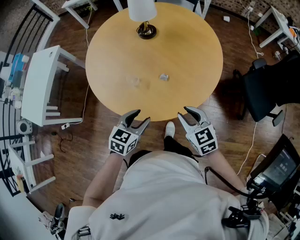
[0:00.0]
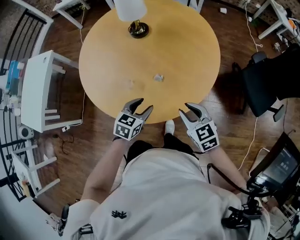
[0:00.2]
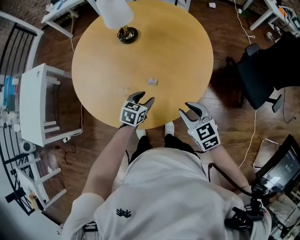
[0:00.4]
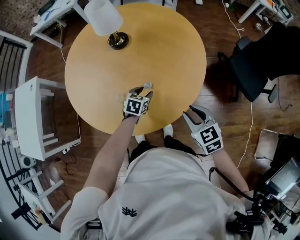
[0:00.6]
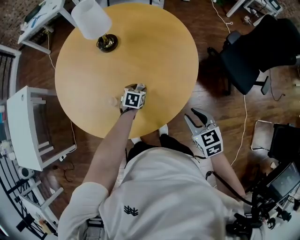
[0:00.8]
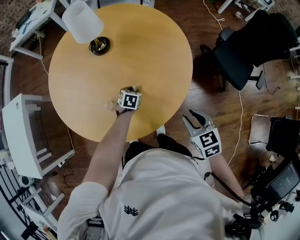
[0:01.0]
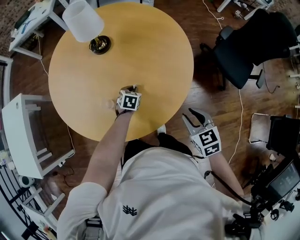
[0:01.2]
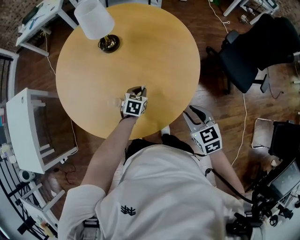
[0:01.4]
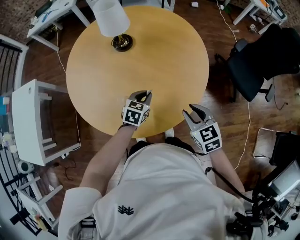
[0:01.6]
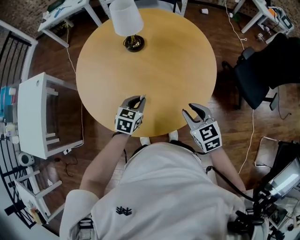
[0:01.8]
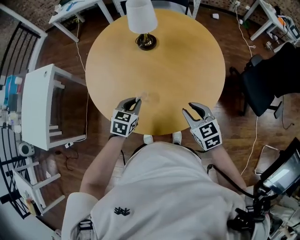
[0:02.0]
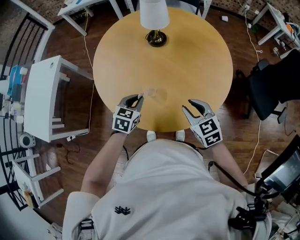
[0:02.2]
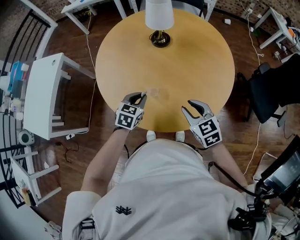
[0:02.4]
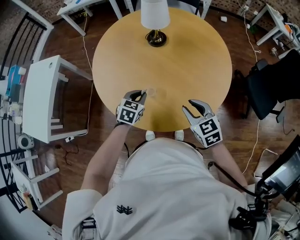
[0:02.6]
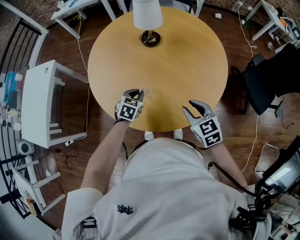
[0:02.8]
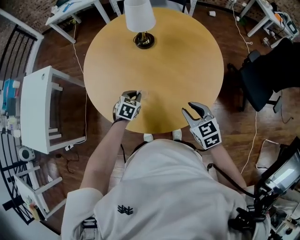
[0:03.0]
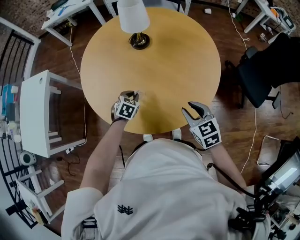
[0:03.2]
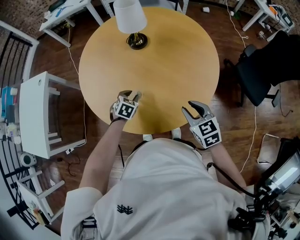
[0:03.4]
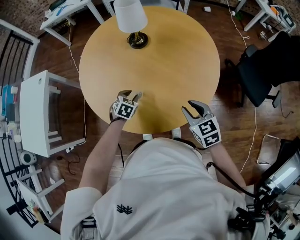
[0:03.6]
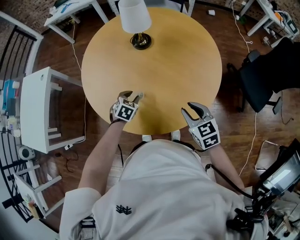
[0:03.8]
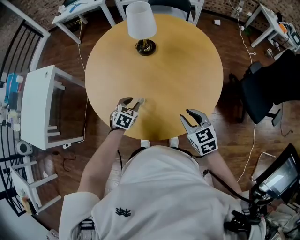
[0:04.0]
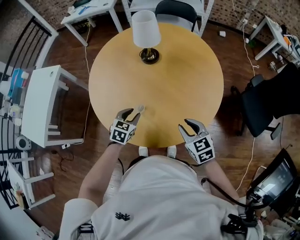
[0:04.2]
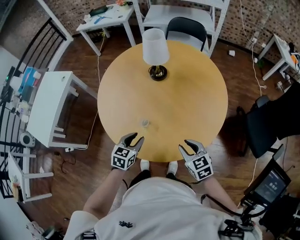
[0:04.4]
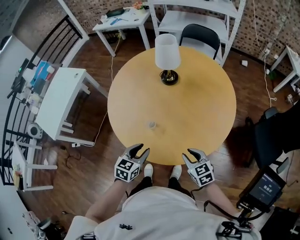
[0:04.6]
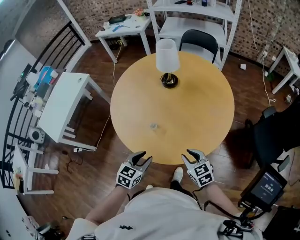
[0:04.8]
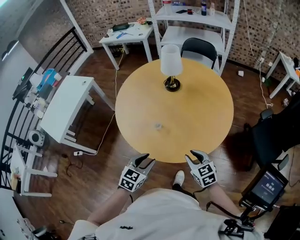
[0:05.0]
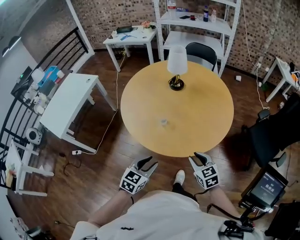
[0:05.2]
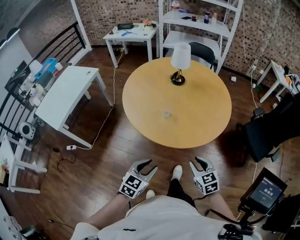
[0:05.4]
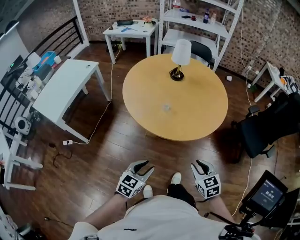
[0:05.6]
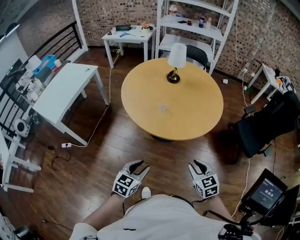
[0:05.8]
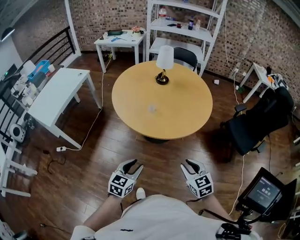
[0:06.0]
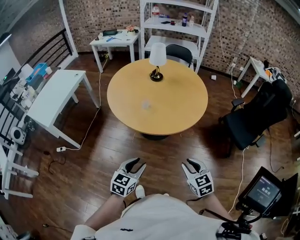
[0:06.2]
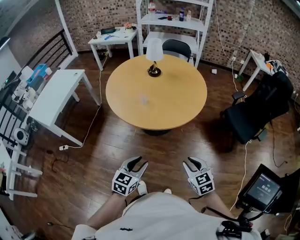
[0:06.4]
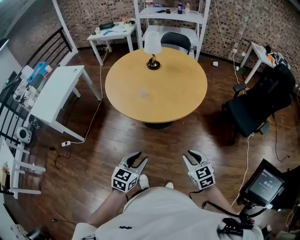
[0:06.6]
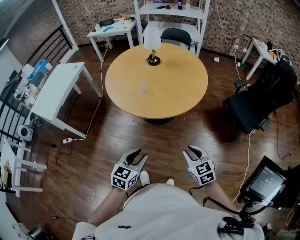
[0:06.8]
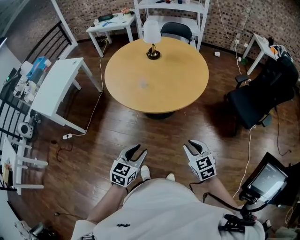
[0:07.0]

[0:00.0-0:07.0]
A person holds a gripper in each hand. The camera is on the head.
0:00.0 to 0:01.4: The right gripper heads forward and to the right, covering roughly 10 cm, and turns by approximately 20 degrees. The left gripper travels forward and downward by about 25 cm, and closes its fingers.
0:01.4 to 0:02.8: Both grippers move to the left, some 15 cm.
0:02.8 to 0:04.2: The left gripper opens up.
0:04.2 to 0:05.6: Both grippers travel together backward, approximately 35 cm.
0:05.6 to 0:07.0: Both grippers travel together to the right and backward, approximately 15 cm.

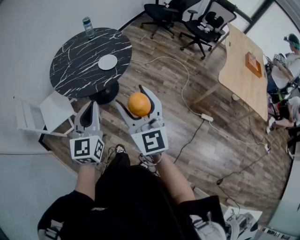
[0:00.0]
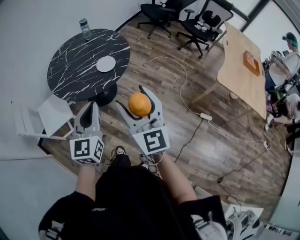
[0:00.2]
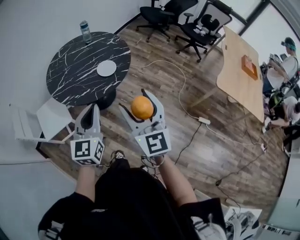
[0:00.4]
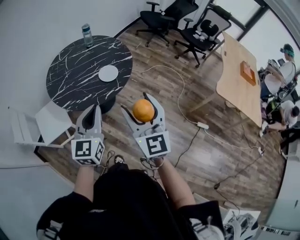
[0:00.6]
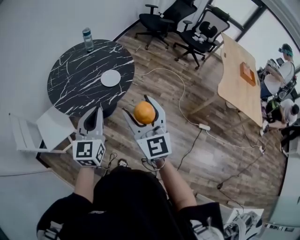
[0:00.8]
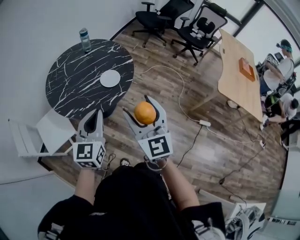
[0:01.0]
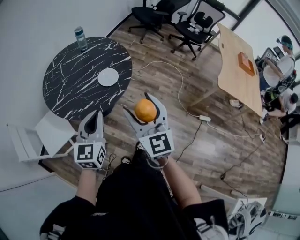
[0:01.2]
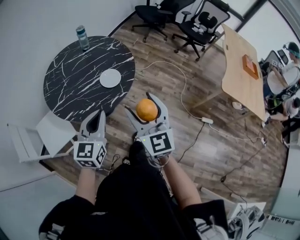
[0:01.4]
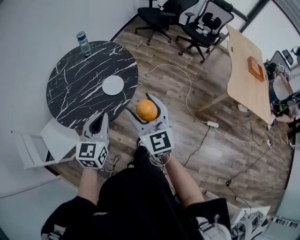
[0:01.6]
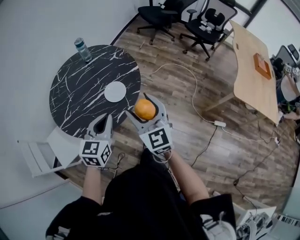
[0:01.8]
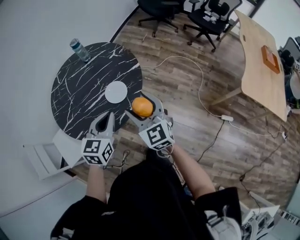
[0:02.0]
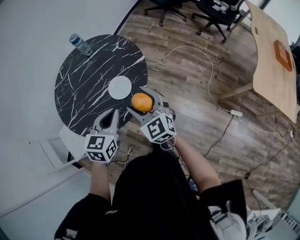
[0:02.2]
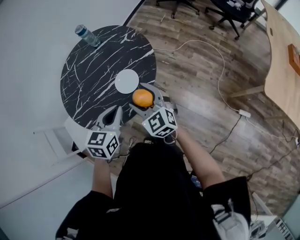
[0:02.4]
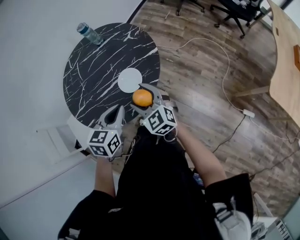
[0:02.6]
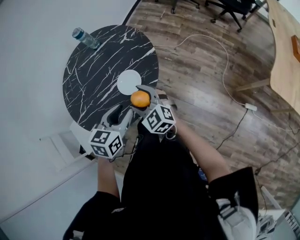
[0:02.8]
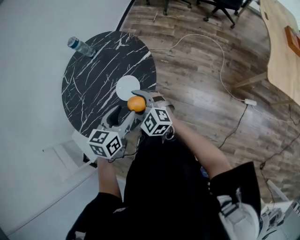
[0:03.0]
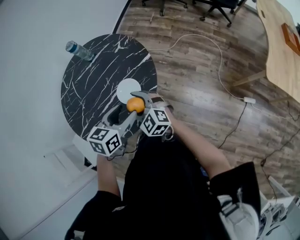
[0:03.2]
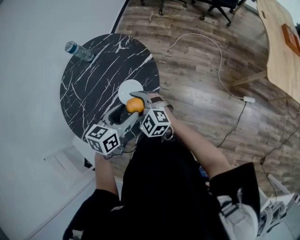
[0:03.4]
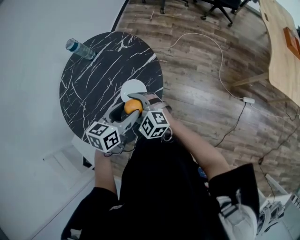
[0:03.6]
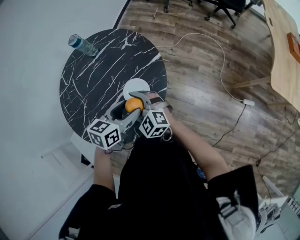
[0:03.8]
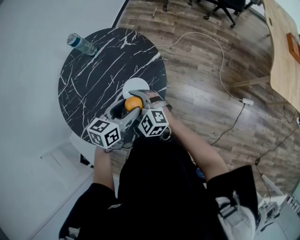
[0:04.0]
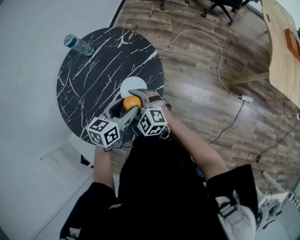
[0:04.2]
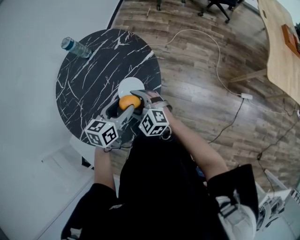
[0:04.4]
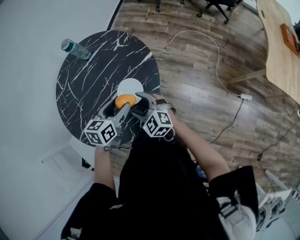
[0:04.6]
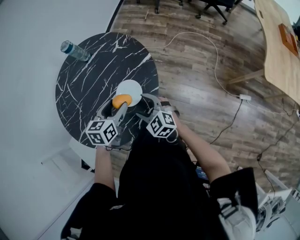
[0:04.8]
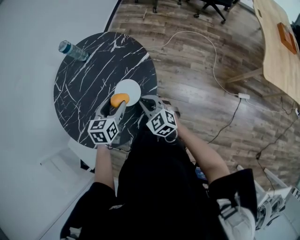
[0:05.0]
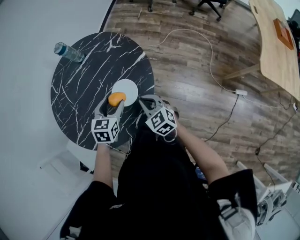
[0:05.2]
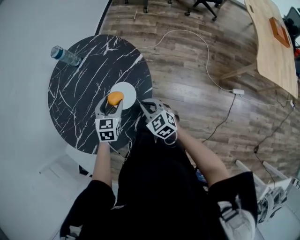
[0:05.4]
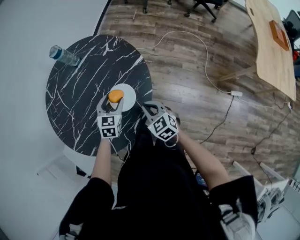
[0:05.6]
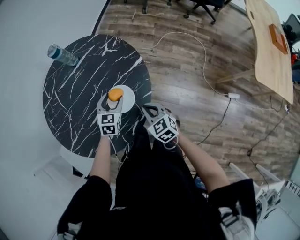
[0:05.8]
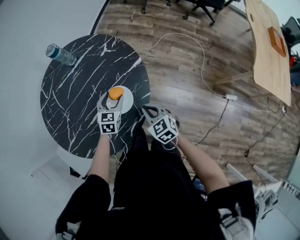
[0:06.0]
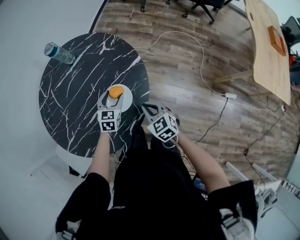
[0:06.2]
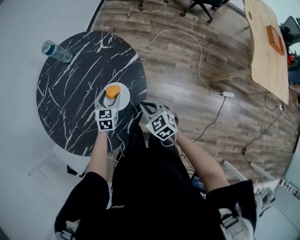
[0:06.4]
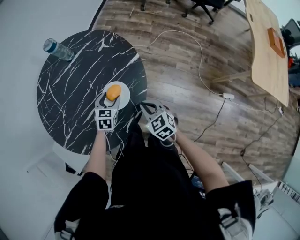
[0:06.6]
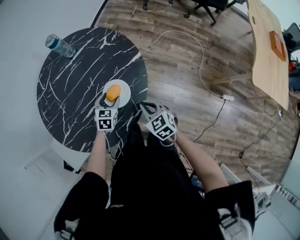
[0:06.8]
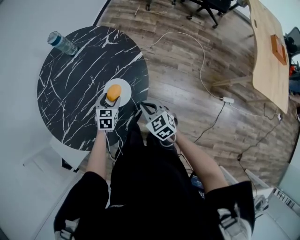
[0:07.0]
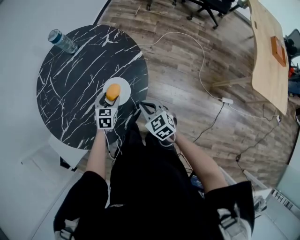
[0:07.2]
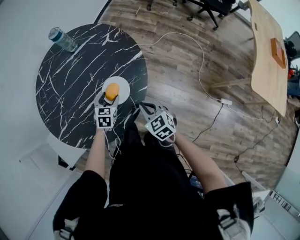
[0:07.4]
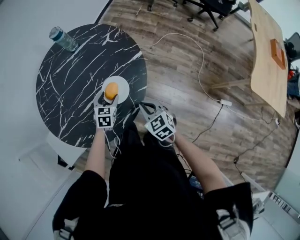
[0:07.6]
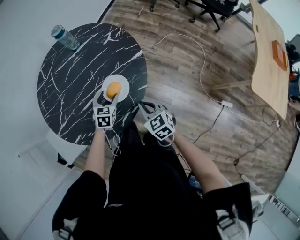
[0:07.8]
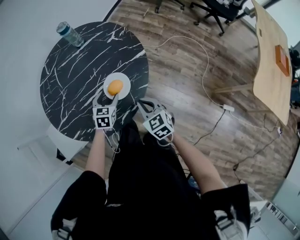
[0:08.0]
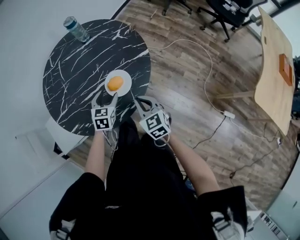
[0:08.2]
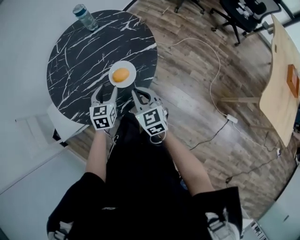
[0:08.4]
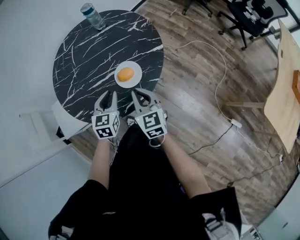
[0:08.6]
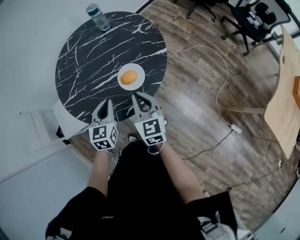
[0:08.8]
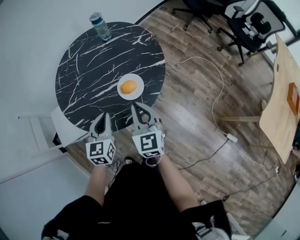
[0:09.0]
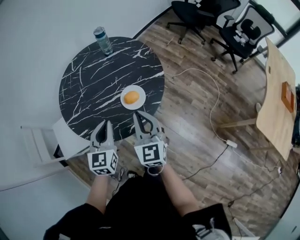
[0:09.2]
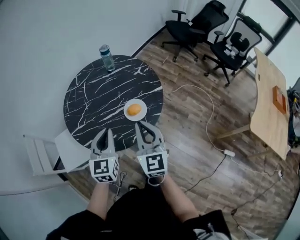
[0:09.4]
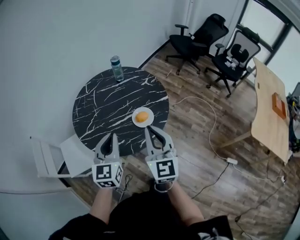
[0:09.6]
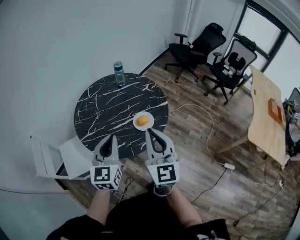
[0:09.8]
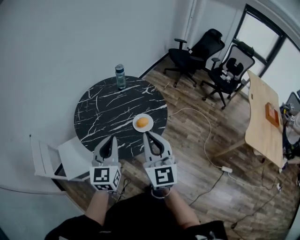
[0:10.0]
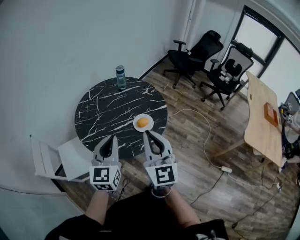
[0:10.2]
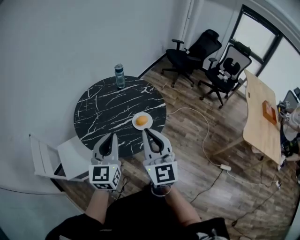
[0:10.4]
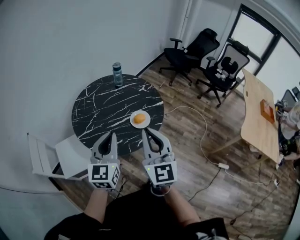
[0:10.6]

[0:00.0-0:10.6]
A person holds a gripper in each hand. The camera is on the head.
0:00.0 to 0:01.6: The two grippers go about 20 cm forward.
0:01.6 to 0:03.0: The right gripper goes roughly 25 cm downward and forward, and rotates about 30 degrees. The left gripper shifts approximately 20 cm forward, downward and to the right, changes its angle by about 30 degrees, and opens its fingers.
0:03.0 to 0:04.6: The right gripper travels to the left and back again, some 10 cm each way, while the left gripper shifts approximately 10 cm forward, to the left and downward.
0:04.6 to 0:06.0: The right gripper travels to the right by some 10 cm, rotates approximately 30 degrees, and closes; the left gripper heads downward and forward, covering roughly 15 cm, and changes its angle by about 20 degrees.
0:06.0 to 0:07.6: The left gripper moves roughly 5 cm.
0:07.6 to 0:09.0: The left gripper travels upward and backward by approximately 25 cm, changes its angle by roughly 30 degrees, and closes up; the right gripper shifts roughly 15 cm upward, and swivels some 20 degrees.
0:09.0 to 0:10.6: The two grippers go roughly 25 cm upward and backward. The left gripper swivels about 20 degrees; the right gripper rotates approximately 20 degrees.

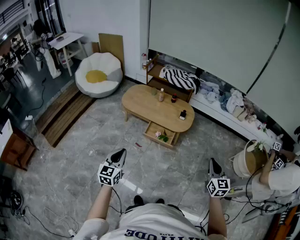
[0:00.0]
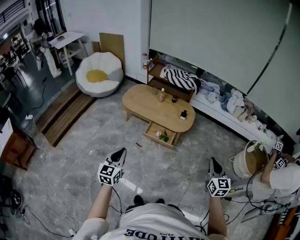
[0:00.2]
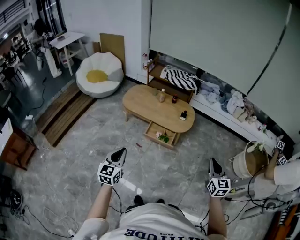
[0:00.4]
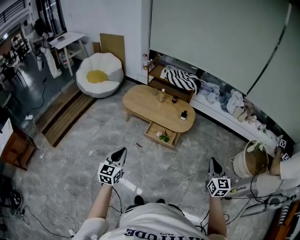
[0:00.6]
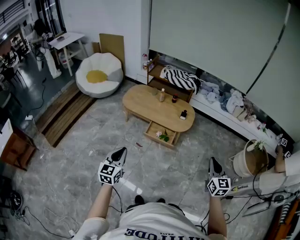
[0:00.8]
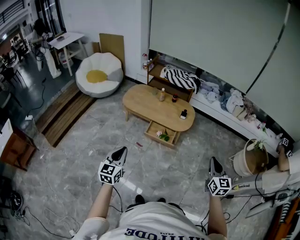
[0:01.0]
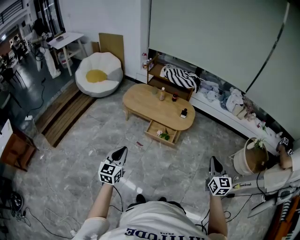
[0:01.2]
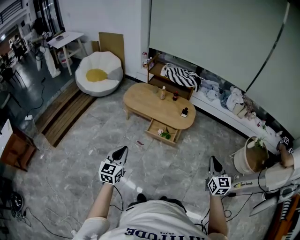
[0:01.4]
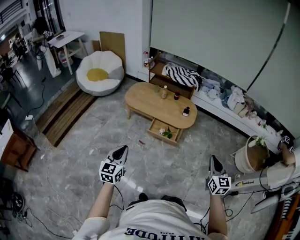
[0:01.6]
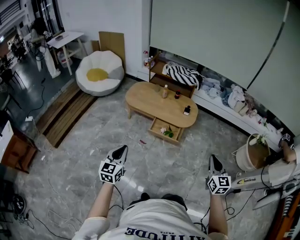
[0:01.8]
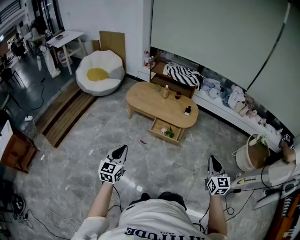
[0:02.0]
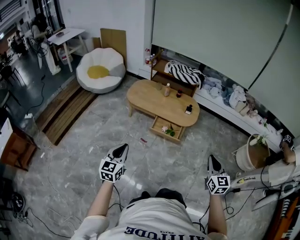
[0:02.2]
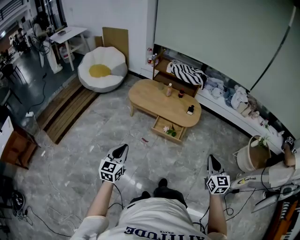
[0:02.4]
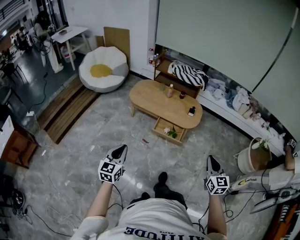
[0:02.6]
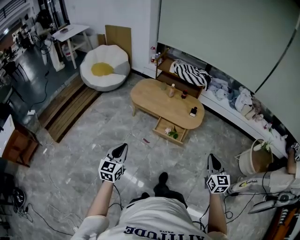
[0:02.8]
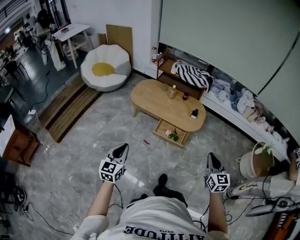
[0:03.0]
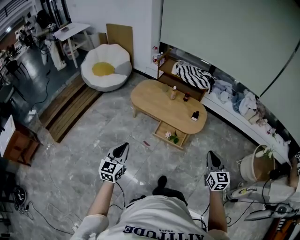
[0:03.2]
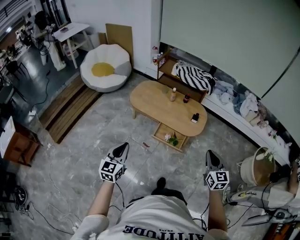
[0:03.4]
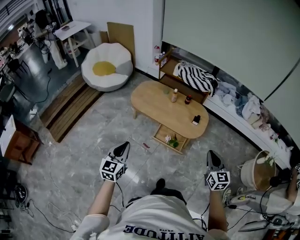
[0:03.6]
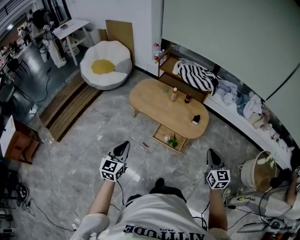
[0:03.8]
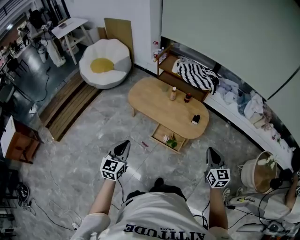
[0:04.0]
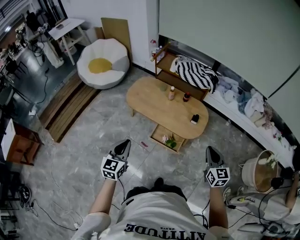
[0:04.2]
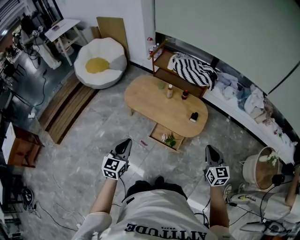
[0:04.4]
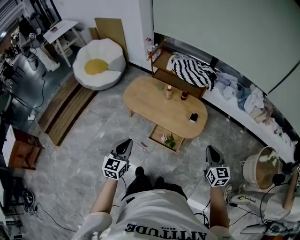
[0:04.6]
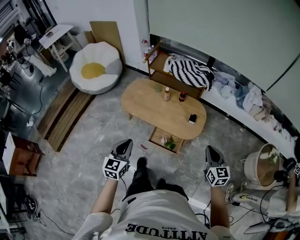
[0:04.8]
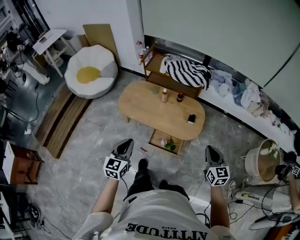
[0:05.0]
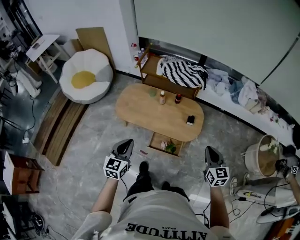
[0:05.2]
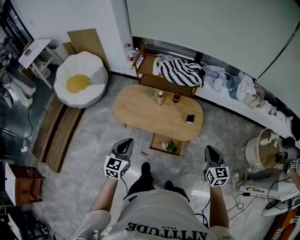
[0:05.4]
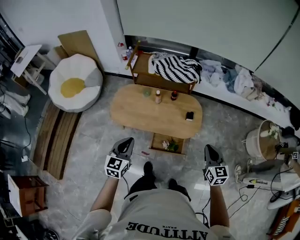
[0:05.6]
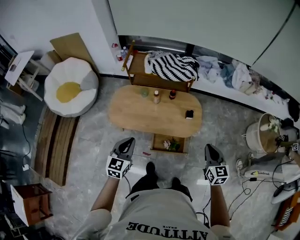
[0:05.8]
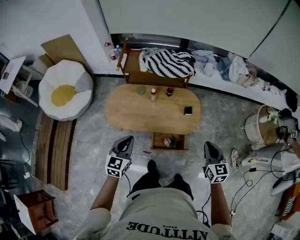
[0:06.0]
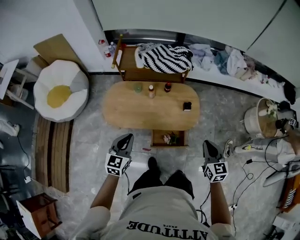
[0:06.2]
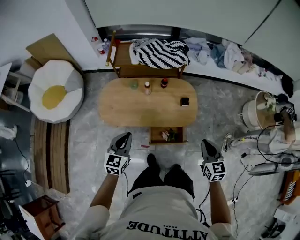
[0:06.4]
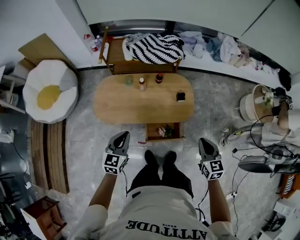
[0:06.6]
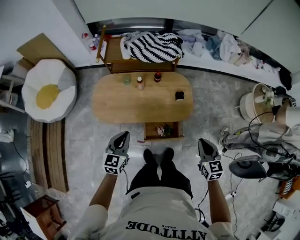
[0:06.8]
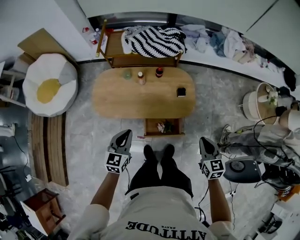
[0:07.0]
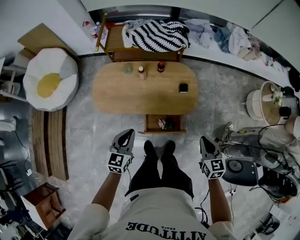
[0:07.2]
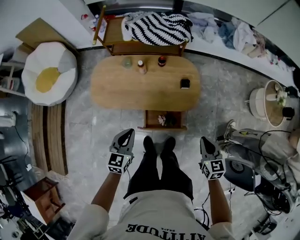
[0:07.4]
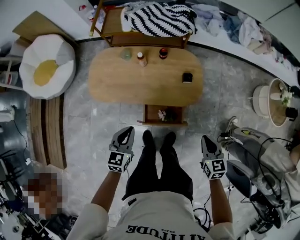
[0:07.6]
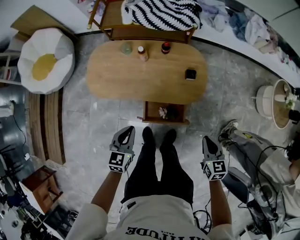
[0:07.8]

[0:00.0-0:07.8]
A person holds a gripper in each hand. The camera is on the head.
0:00.0 to 0:01.6: The left gripper changes place by roughly 5 cm; the right gripper moves to the left, some 5 cm.
0:01.6 to 0:03.2: The two grippers go roughly 15 cm forward.
0:03.2 to 0:04.6: The right gripper shifts about 20 cm forward; the left gripper heads forward and to the right, covering roughly 20 cm.
0:04.6 to 0:06.2: The left gripper shifts by about 25 cm, and rotates some 30 degrees. The right gripper changes place by roughly 15 cm, and turns by roughly 20 degrees.
0:06.2 to 0:07.8: The two grippers go roughly 20 cm downward and to the right.
